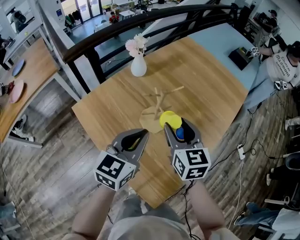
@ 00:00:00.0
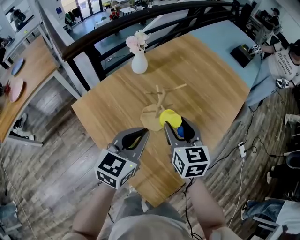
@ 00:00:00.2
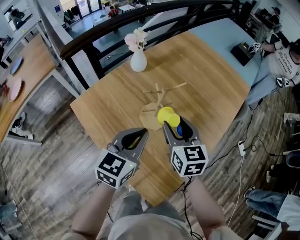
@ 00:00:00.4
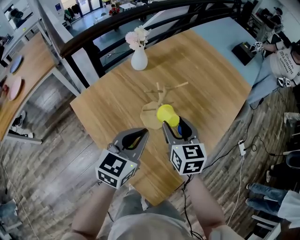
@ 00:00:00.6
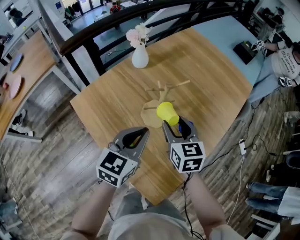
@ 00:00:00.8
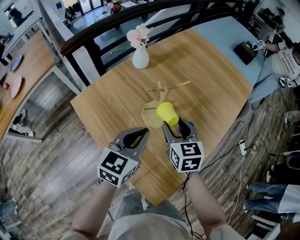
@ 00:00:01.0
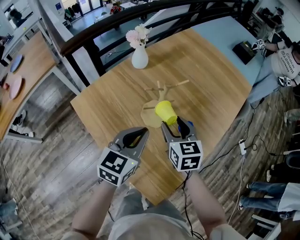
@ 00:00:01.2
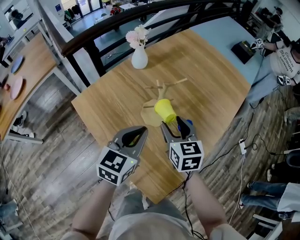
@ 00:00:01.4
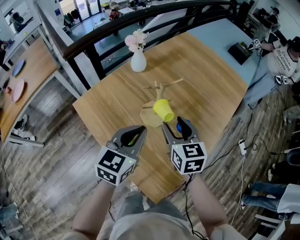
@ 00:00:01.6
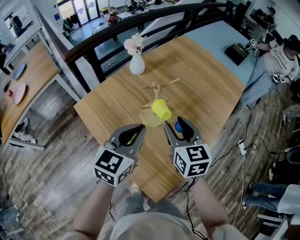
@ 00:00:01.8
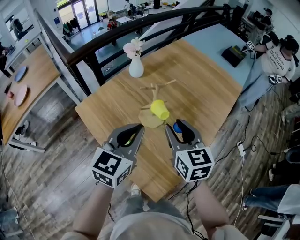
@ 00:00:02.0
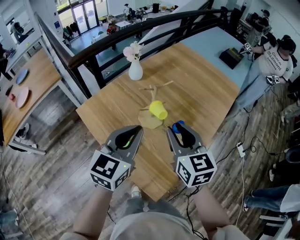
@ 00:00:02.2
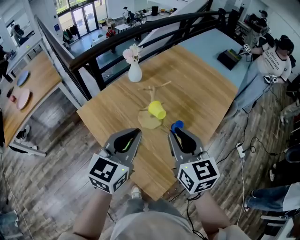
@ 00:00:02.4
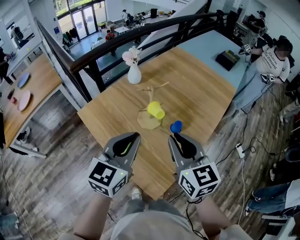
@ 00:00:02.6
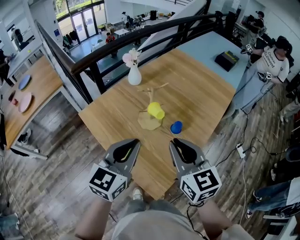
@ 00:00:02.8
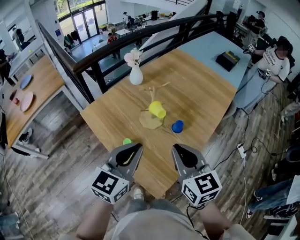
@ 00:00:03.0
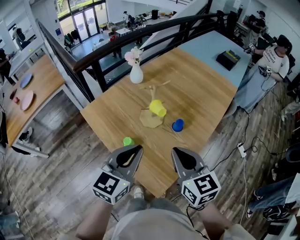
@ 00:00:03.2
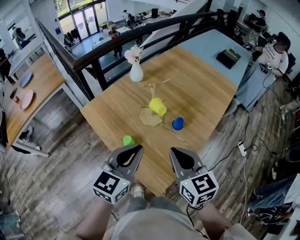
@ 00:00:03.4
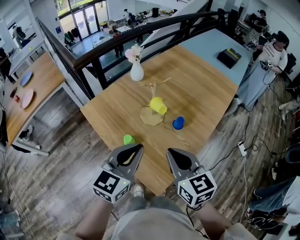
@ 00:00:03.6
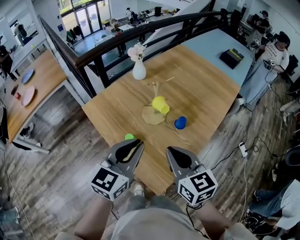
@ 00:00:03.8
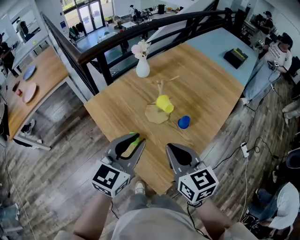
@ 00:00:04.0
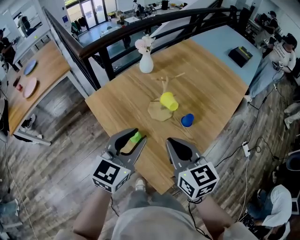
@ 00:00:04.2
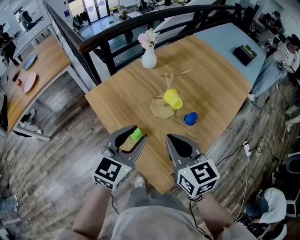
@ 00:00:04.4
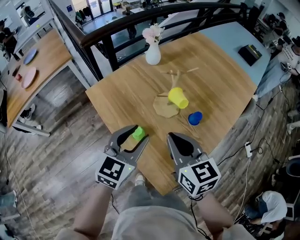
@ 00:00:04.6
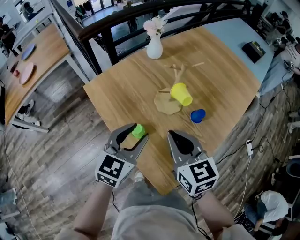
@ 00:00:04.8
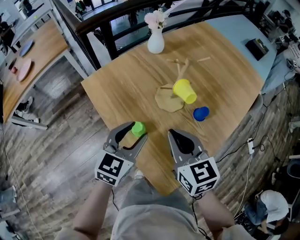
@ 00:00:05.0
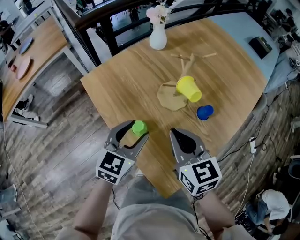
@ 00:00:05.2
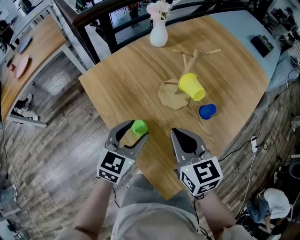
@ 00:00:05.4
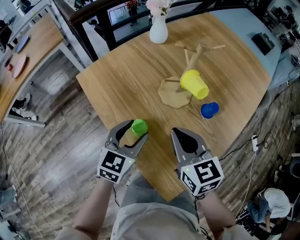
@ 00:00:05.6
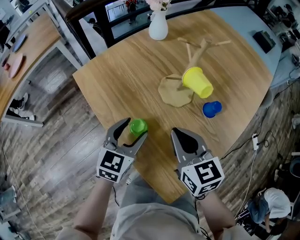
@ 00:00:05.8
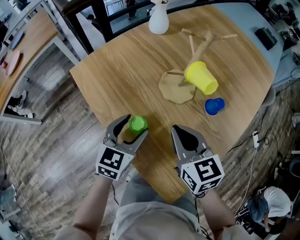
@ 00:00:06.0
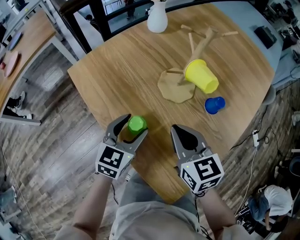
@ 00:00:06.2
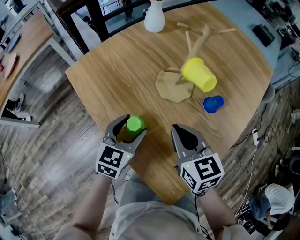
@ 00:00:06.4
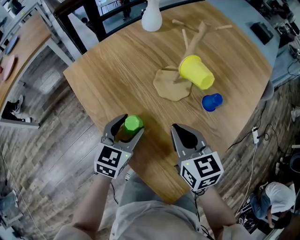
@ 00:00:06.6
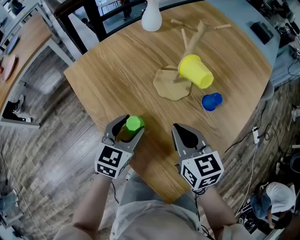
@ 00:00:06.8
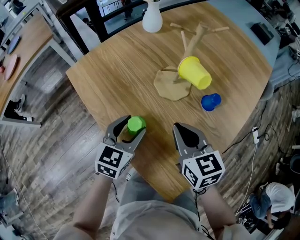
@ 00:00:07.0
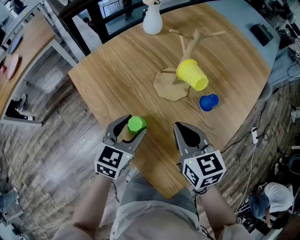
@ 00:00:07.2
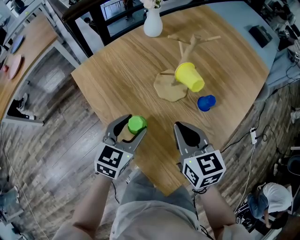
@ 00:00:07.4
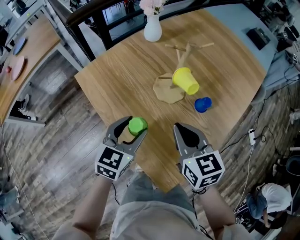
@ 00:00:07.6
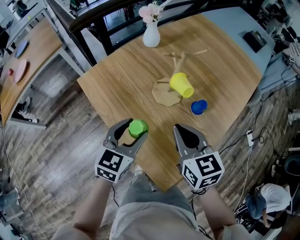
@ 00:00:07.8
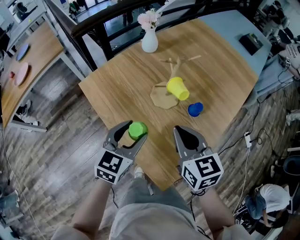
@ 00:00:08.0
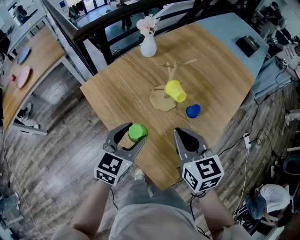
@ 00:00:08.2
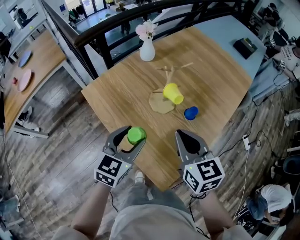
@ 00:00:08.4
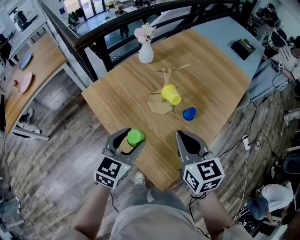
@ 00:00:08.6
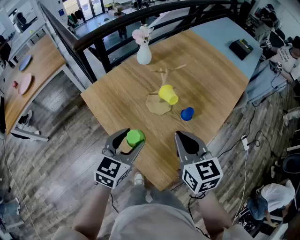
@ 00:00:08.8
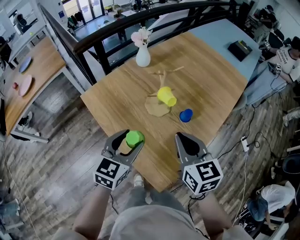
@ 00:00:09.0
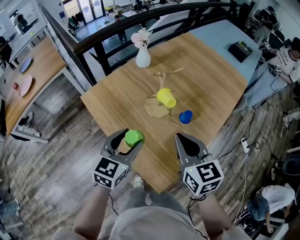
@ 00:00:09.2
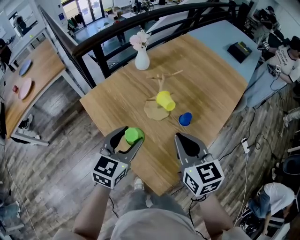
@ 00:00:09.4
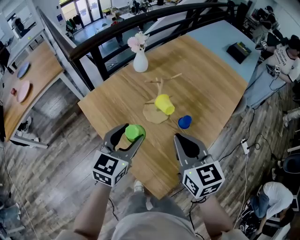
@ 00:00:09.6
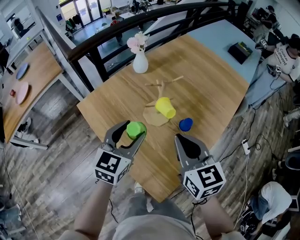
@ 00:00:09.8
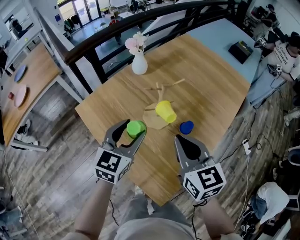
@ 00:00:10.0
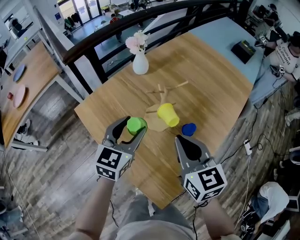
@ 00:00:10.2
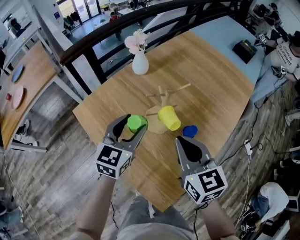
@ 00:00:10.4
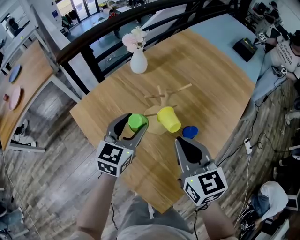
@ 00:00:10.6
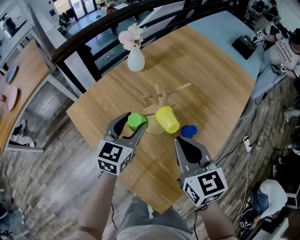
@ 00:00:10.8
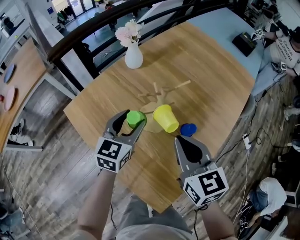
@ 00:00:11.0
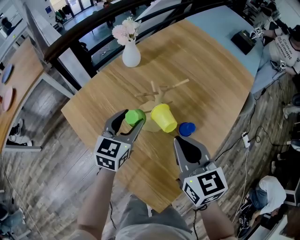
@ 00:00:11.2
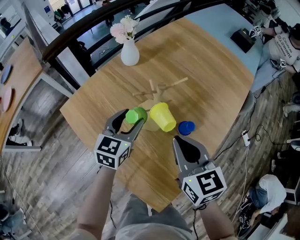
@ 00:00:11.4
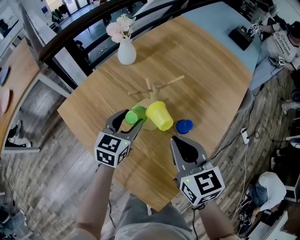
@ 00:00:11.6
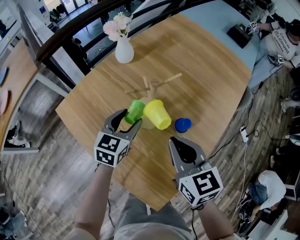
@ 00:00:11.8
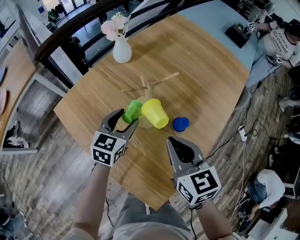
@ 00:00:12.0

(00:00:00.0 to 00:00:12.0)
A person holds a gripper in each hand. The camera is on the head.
00:00:01.6 - 00:00:03.0: The grippers both shift backward and upward by about 20 cm. The right gripper closes its fingers.
00:00:03.0 - 00:00:04.4: The left gripper travels downward by some 5 cm, and opens up; the right gripper moves to the left and downward, some 10 cm.
00:00:04.4 - 00:00:06.0: Both grippers travel together downward, some 25 cm. The left gripper opens up.
00:00:06.0 - 00:00:07.6: Both grippers move upward, roughly 10 cm.
00:00:07.6 - 00:00:09.0: The right gripper goes some 15 cm upward and to the right. Meanwhile the left gripper shifts approximately 15 cm upward and backward.
00:00:09.0 - 00:00:10.4: The left gripper goes approximately 20 cm forward, while the right gripper travels forward by approximately 10 cm.
00:00:10.4 - 00:00:12.0: The right gripper heads downward, covering some 5 cm, while the left gripper heads downward, covering about 10 cm.

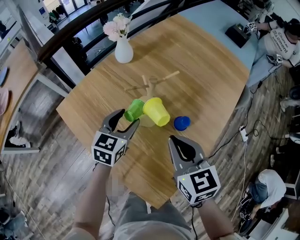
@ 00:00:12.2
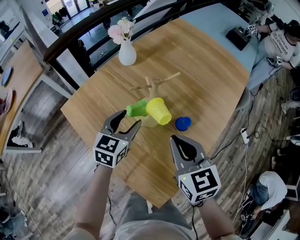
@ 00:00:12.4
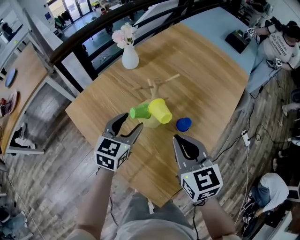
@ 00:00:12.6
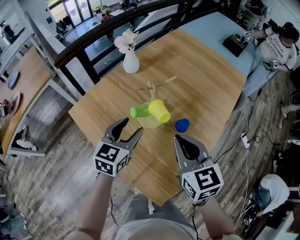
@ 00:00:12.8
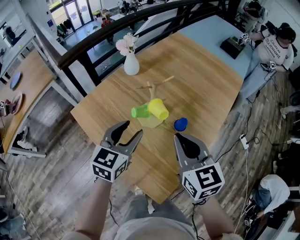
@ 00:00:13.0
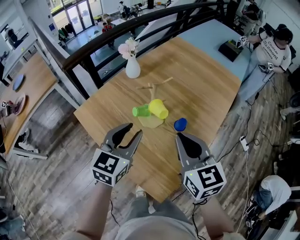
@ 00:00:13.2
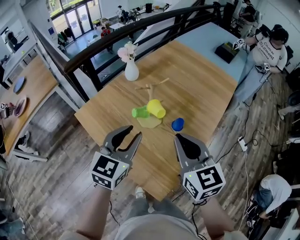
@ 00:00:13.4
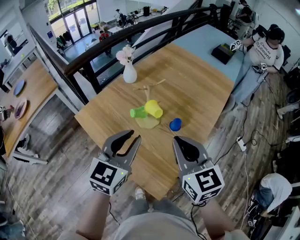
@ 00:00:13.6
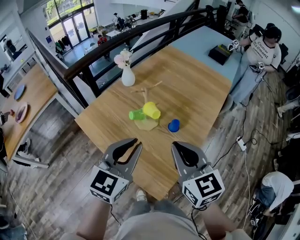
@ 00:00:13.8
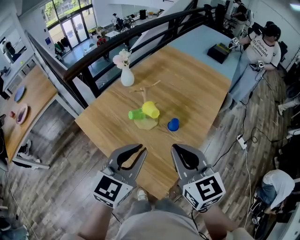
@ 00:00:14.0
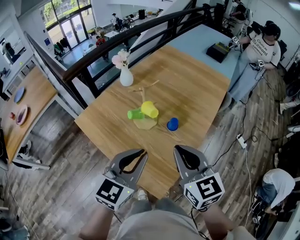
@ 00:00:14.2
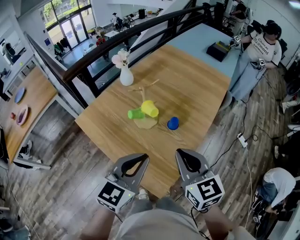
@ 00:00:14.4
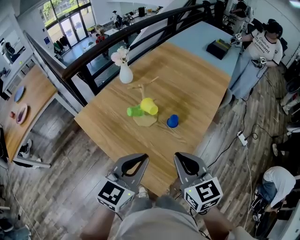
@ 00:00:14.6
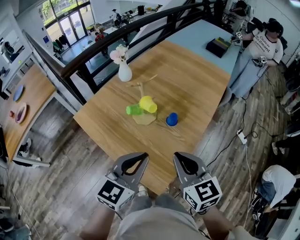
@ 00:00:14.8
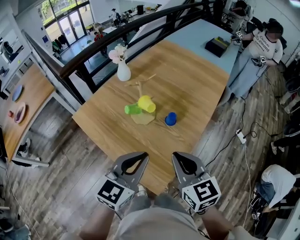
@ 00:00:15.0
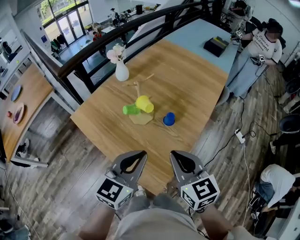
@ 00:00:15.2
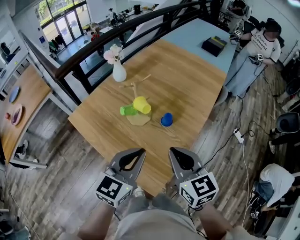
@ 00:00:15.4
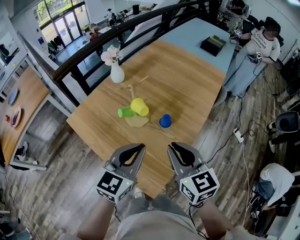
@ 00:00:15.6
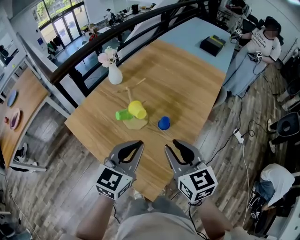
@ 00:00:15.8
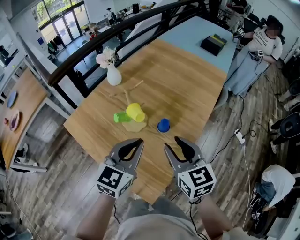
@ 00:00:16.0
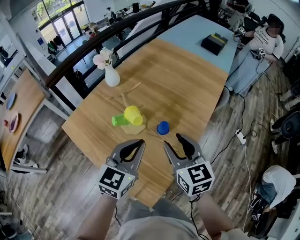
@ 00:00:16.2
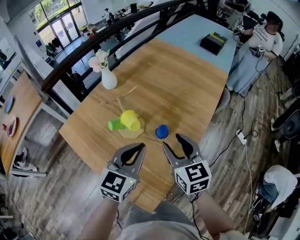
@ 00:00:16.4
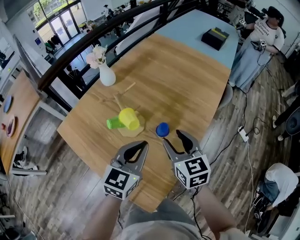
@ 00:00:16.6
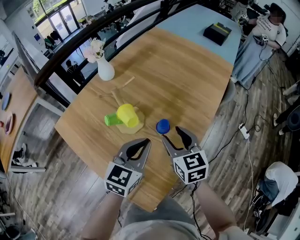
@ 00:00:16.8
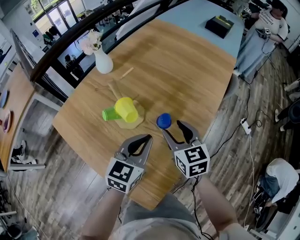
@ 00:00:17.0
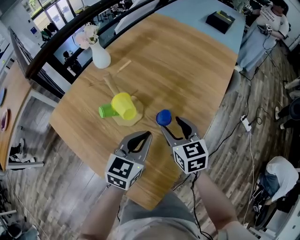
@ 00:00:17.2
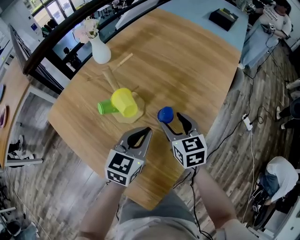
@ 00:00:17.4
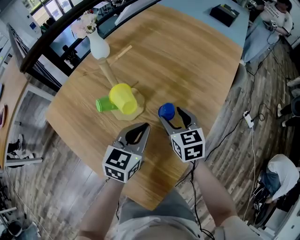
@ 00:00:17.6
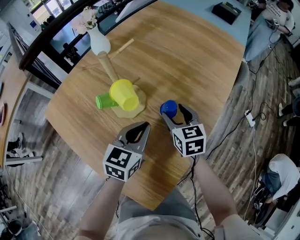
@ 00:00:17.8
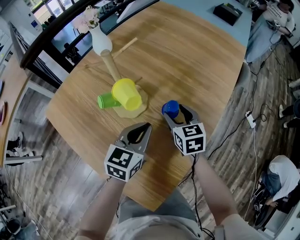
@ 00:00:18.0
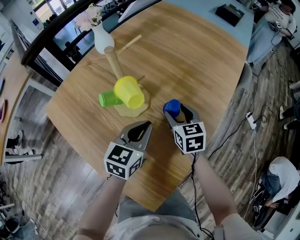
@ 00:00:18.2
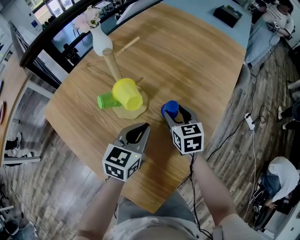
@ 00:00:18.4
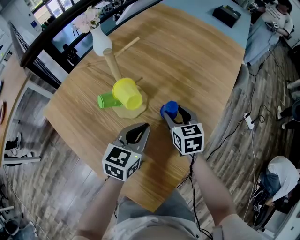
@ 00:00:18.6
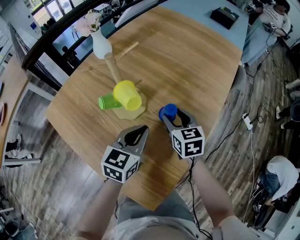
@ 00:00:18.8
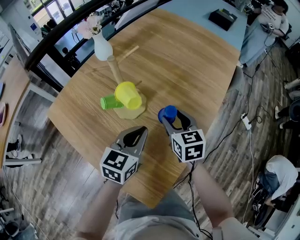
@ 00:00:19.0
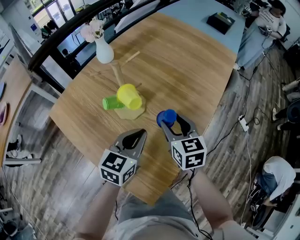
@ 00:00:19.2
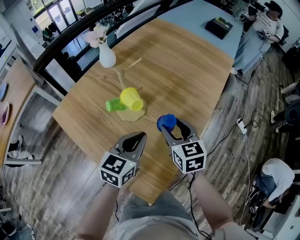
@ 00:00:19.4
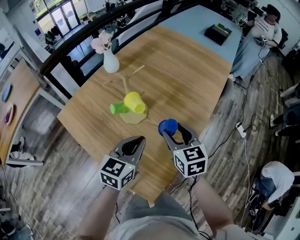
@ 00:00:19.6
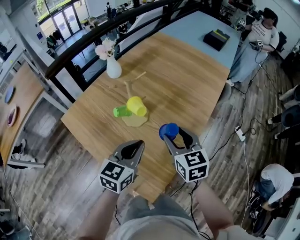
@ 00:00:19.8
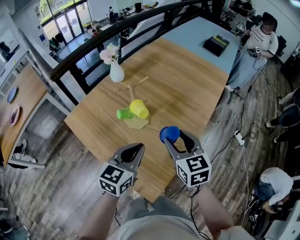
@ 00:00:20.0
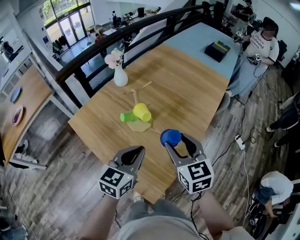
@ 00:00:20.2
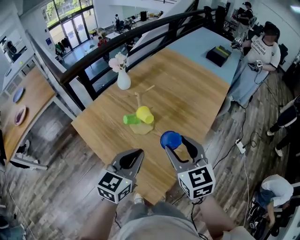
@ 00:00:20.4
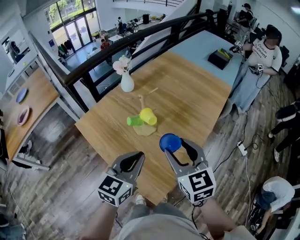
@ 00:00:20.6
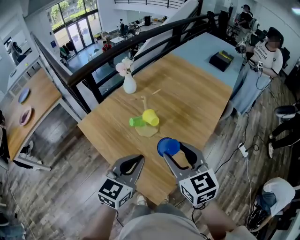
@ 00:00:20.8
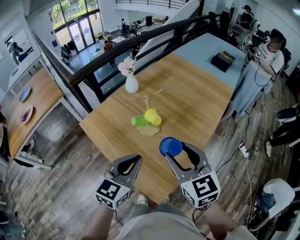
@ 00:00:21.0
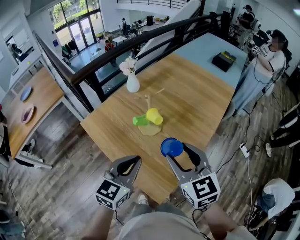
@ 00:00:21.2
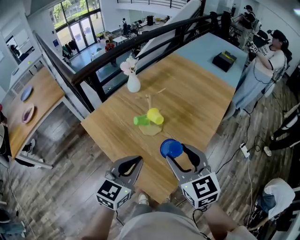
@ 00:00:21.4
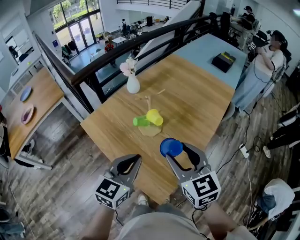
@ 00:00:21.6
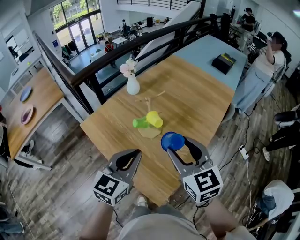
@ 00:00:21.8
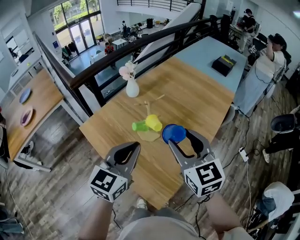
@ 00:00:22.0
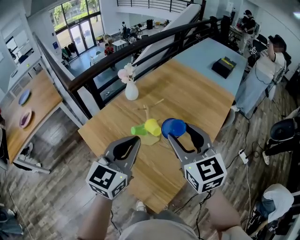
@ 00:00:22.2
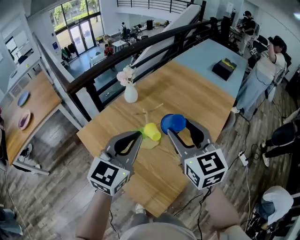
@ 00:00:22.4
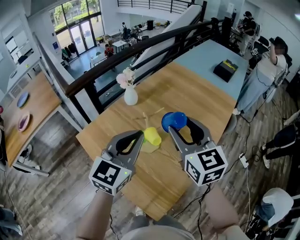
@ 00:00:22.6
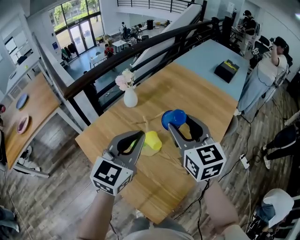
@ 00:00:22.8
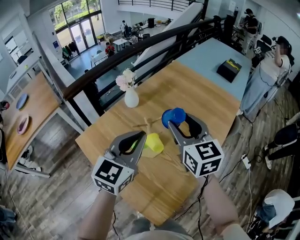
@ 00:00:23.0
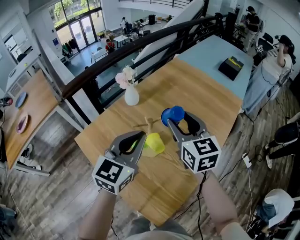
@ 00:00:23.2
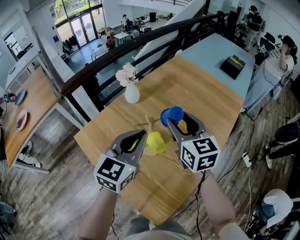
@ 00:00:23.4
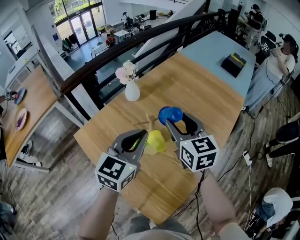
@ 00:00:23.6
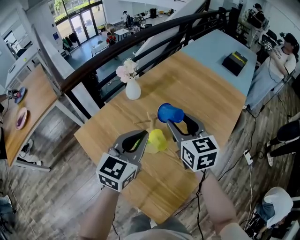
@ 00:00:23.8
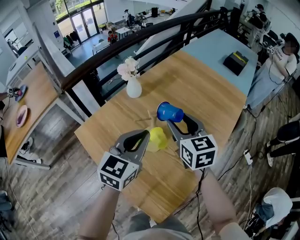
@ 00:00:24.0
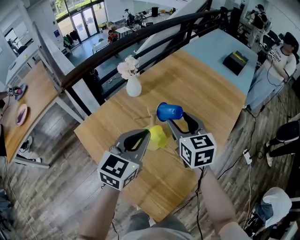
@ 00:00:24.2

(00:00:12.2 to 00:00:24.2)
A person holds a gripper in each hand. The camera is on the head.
00:00:12.2 - 00:00:13.8: Both grippers travel together upward and backward, some 25 cm. The left gripper closes its fingers.
00:00:13.8 - 00:00:15.2: The left gripper ends up approximately 10 cm from where it was. Meanwhile the right gripper is displaced downward by some 5 cm.
00:00:15.2 - 00:00:16.6: Both grippers move forward and downward, about 20 cm. The right gripper opens.
00:00:16.6 - 00:00:18.2: Both grippers move downward, about 20 cm.
00:00:18.2 - 00:00:19.8: The two grippers go some 20 cm upward and backward.
00:00:19.8 - 00:00:21.2: The right gripper shifts about 20 cm upward and backward. Meanwhile the left gripper is displaced upward, backward and to the left by about 15 cm.
00:00:21.2 - 00:00:22.6: The left gripper goes roughly 20 cm forward and upward. The right gripper goes some 20 cm forward.
00:00:22.6 - 00:00:24.2: Both grippers move downward and forward, roughly 15 cm.
